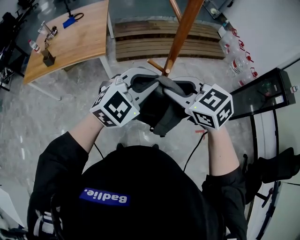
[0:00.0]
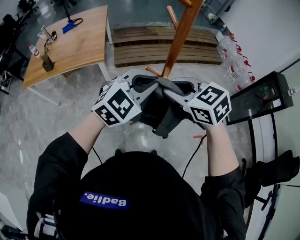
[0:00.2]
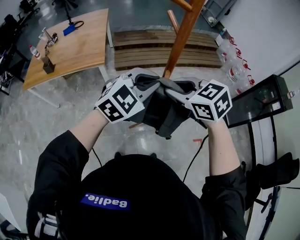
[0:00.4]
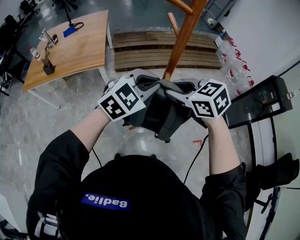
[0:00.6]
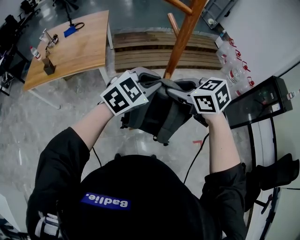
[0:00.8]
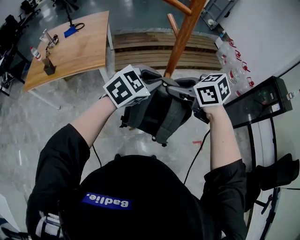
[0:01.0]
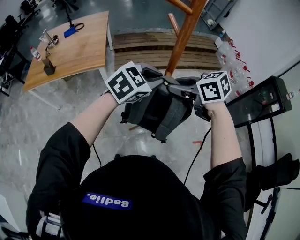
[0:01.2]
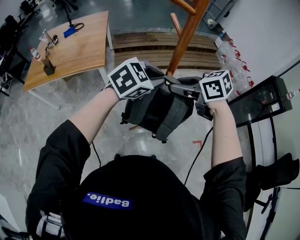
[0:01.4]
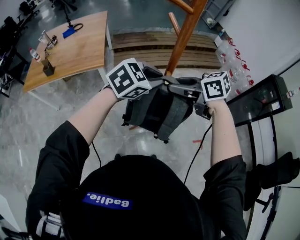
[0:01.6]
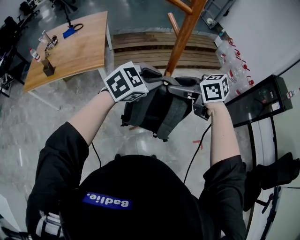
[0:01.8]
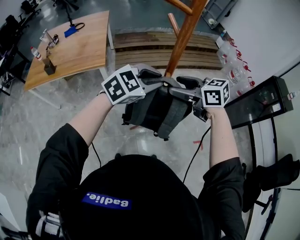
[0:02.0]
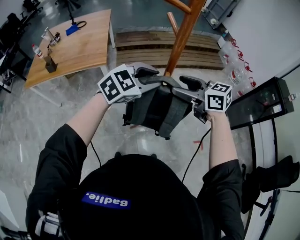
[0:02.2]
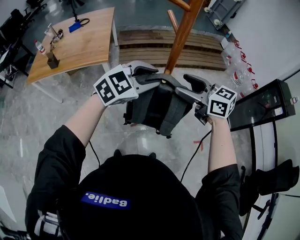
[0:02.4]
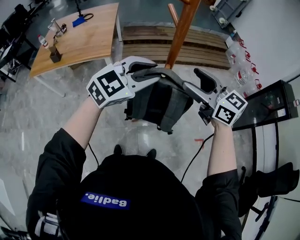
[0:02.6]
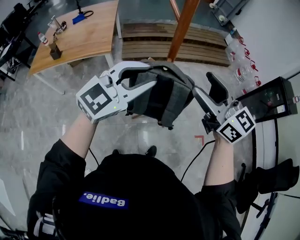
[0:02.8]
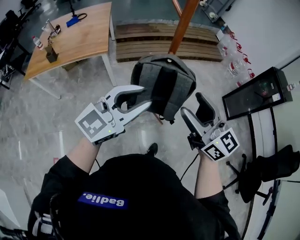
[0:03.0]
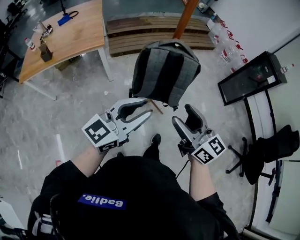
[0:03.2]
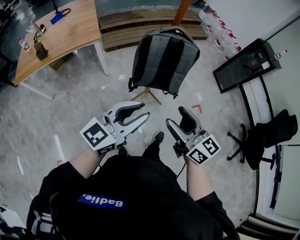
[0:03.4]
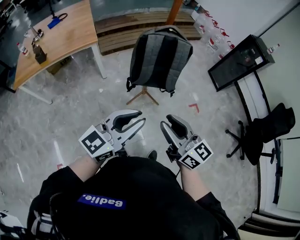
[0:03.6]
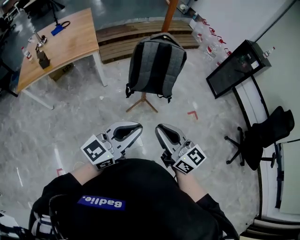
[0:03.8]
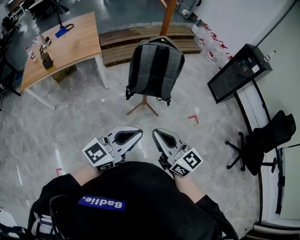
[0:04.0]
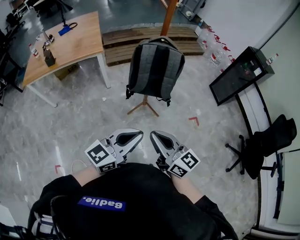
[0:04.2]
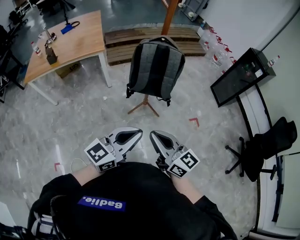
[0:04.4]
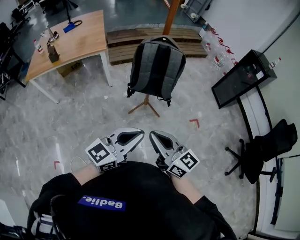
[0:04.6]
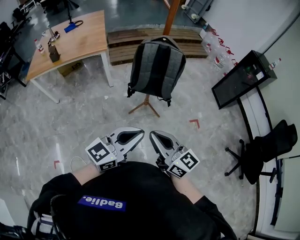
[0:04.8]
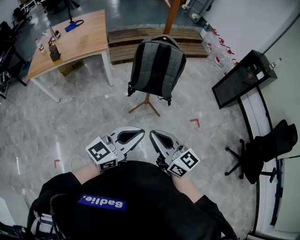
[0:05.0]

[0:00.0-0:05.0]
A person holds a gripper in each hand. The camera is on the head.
0:00.0 to 0:01.6: The left gripper ends up roughly 10 cm from where it was, and rotates approximately 30 degrees, while the right gripper ends up roughly 10 cm from where it was, and turns by approximately 30 degrees.
0:01.6 to 0:03.4: The left gripper travels upward and back again, roughly 5 cm each way, and tips its fingers upward by about 40 degrees; the right gripper moves about 10 cm upward and comes back, rotates roughly 50 degrees, and opens.
0:03.4 to 0:05.0: The right gripper goes roughly 15 cm backward, and closes up. The left gripper heads backward and to the right, covering approximately 15 cm, and closes its fingers.

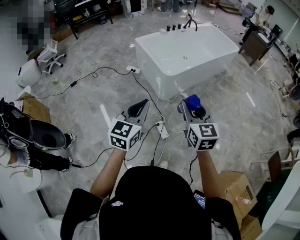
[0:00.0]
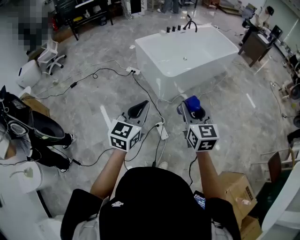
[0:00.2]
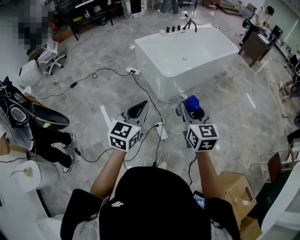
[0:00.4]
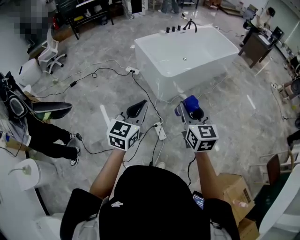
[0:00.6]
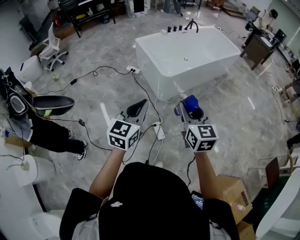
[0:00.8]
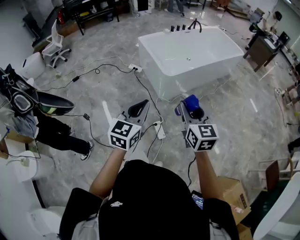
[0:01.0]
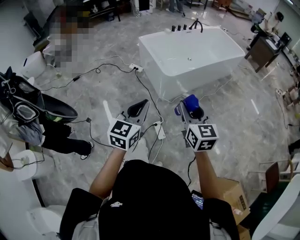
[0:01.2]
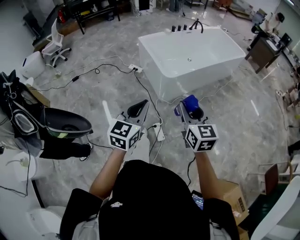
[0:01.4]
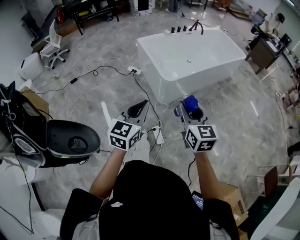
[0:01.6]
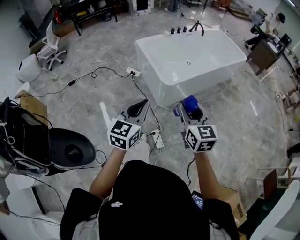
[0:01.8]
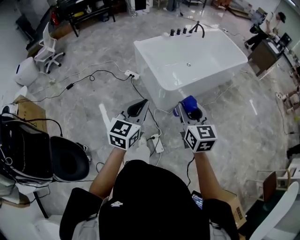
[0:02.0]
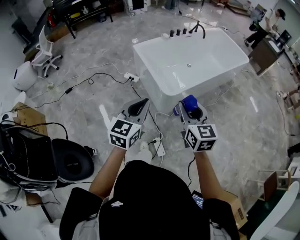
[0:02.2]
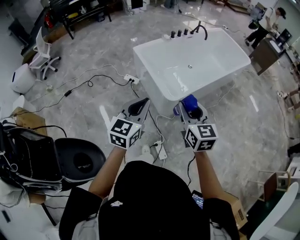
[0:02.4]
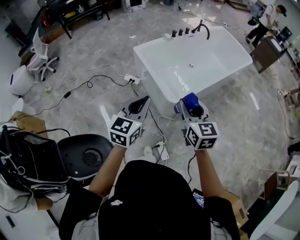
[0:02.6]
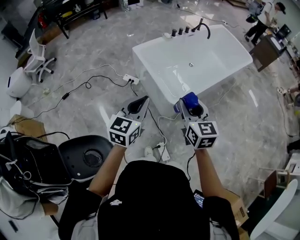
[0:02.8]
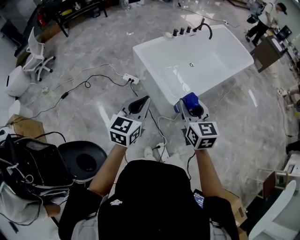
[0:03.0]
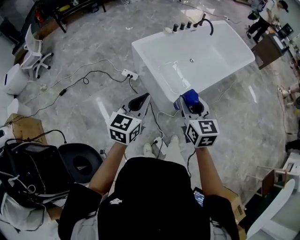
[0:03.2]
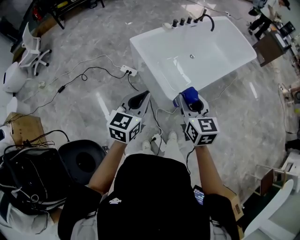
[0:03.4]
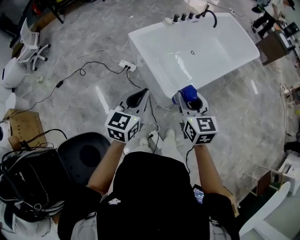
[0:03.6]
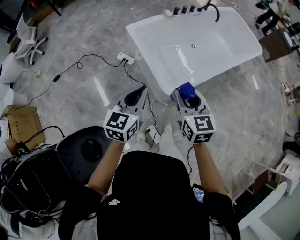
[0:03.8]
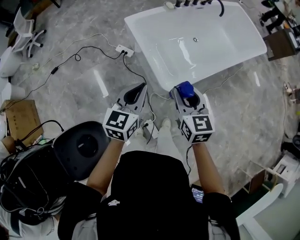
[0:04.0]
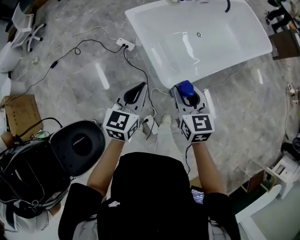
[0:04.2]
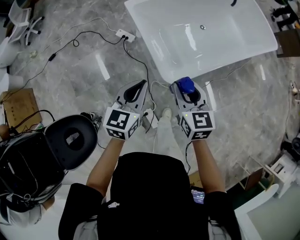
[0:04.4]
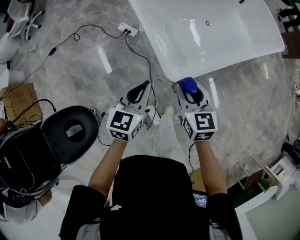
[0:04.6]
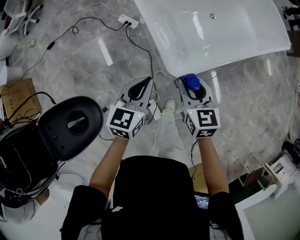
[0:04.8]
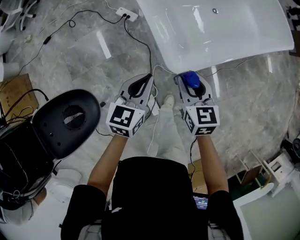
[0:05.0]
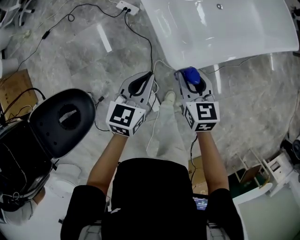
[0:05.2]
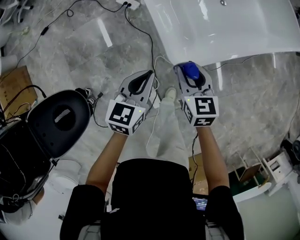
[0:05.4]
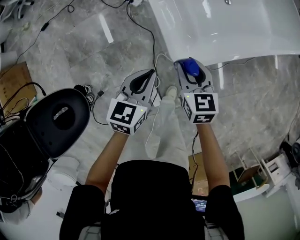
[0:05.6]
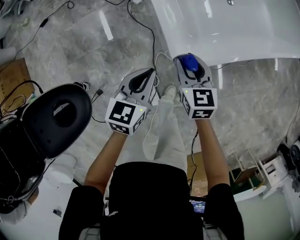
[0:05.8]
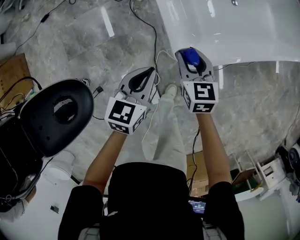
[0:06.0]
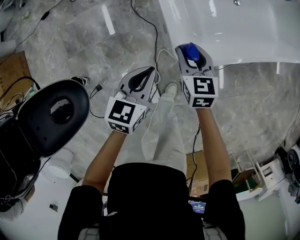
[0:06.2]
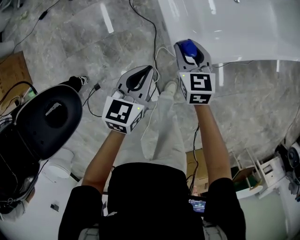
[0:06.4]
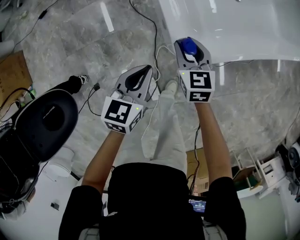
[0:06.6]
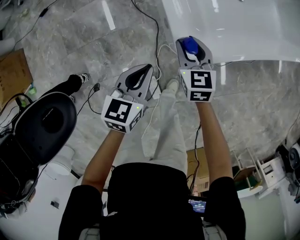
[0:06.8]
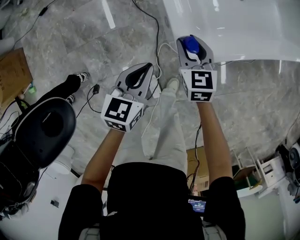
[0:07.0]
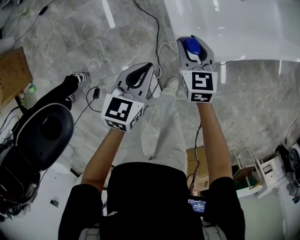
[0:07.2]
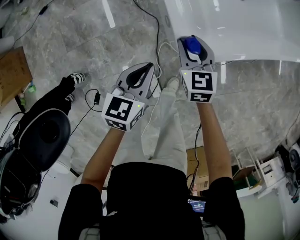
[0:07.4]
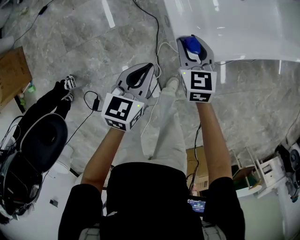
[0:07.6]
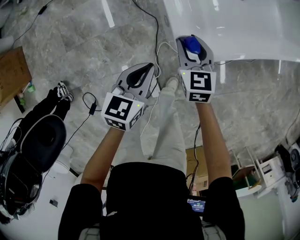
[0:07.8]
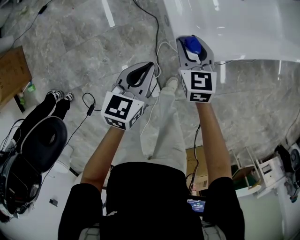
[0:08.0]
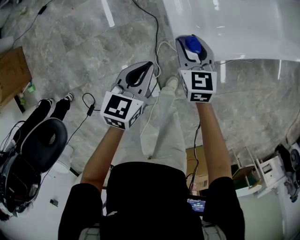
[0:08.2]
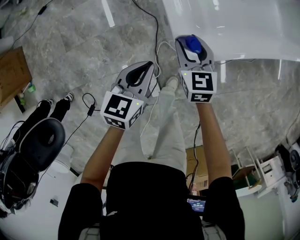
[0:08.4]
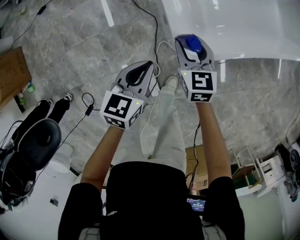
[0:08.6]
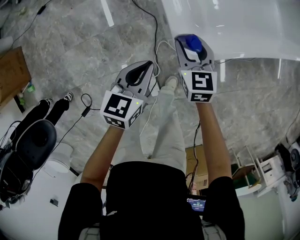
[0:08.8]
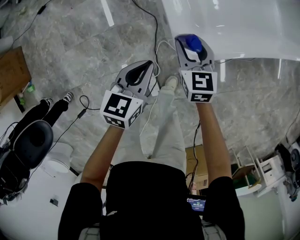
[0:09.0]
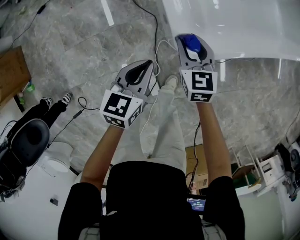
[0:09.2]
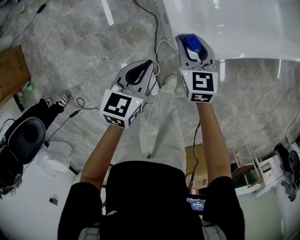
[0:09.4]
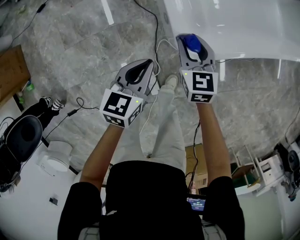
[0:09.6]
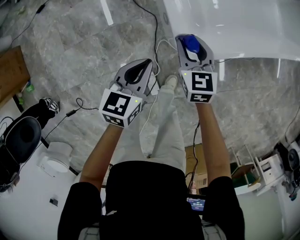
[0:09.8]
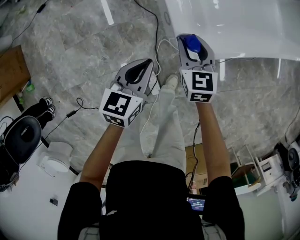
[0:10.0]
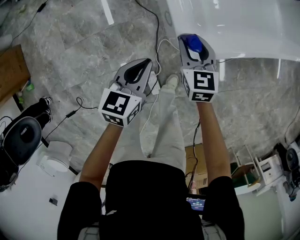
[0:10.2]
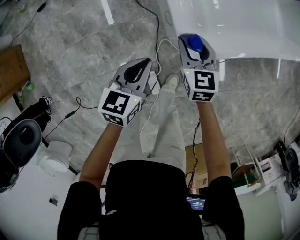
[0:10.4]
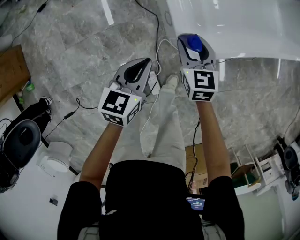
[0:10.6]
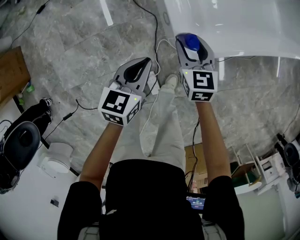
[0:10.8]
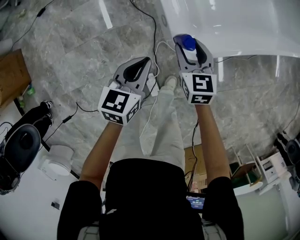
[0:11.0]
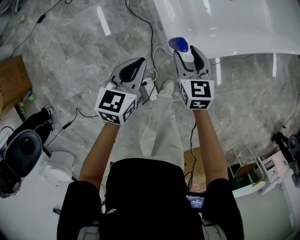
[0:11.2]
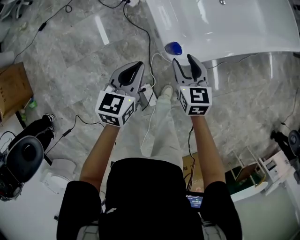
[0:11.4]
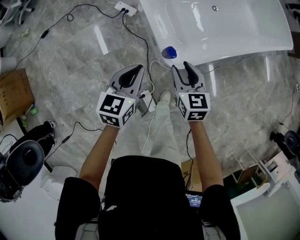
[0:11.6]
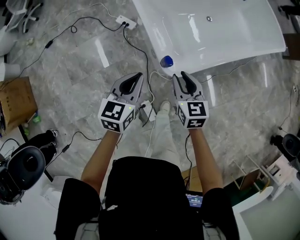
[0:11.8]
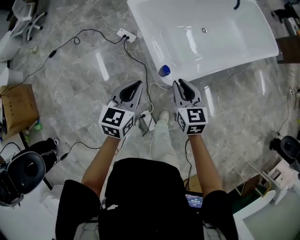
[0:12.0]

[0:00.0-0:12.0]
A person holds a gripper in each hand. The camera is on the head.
0:00.0 to 0:01.6: Both grippers travel together forward, approximately 10 cm.
0:01.6 to 0:03.0: The two grippers go approximately 35 cm forward.
0:03.0 to 0:04.4: The right gripper is displaced downward and forward by about 20 cm. Meanwhile the left gripper shifts roughly 20 cm downward, forward and to the right.
0:04.4 to 0:06.0: The right gripper moves downward and forward, approximately 25 cm. The left gripper is displaced downward by about 20 cm.
0:06.0 to 0:07.6: The grippers make only small movements.
0:07.6 to 0:09.0: The two grippers keep their place.
0:09.0 to 0:10.4: There are only small adjustments of the grippers.
0:10.4 to 0:12.0: Both grippers travel together upward, roughly 25 cm. The right gripper closes its fingers.

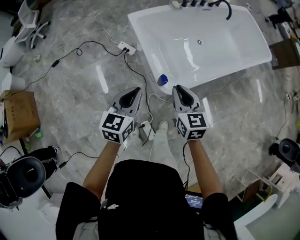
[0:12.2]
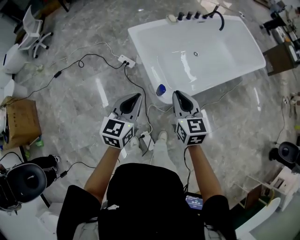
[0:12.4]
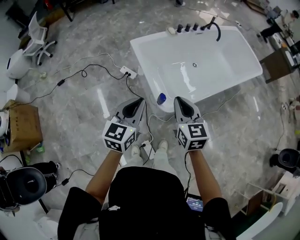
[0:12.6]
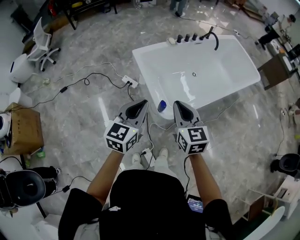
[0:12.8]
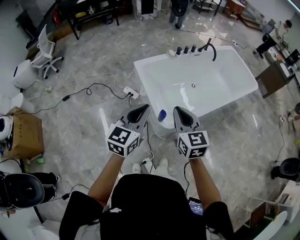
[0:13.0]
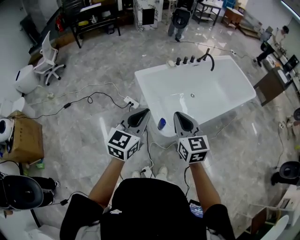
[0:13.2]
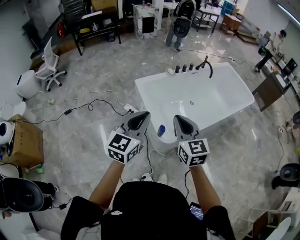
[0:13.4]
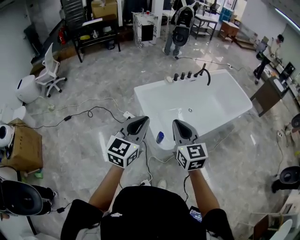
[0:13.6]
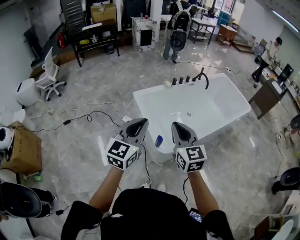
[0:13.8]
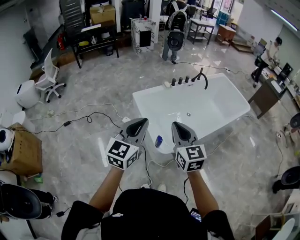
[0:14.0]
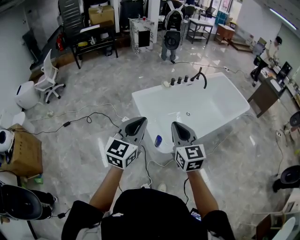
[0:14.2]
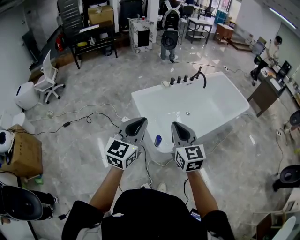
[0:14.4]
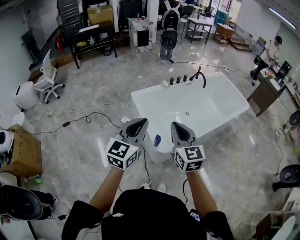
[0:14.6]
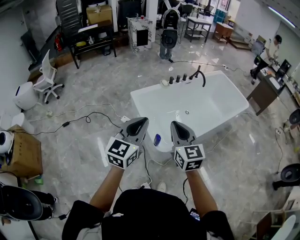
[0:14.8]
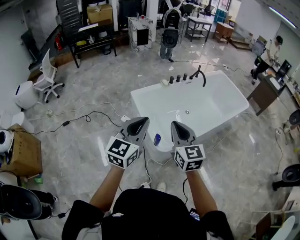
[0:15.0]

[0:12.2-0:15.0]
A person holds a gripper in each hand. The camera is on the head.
0:12.2 to 0:13.6: The two grippers go approximately 25 cm upward. The left gripper turns by roughly 20 degrees.
0:13.6 to 0:15.0: The grippers stay close to where they were, moving slightly.

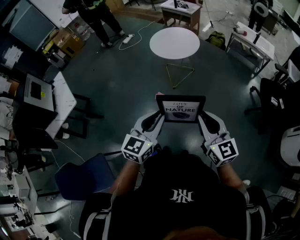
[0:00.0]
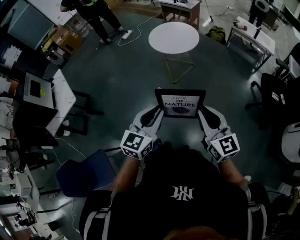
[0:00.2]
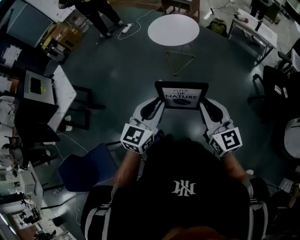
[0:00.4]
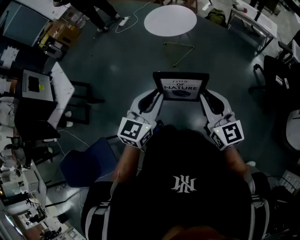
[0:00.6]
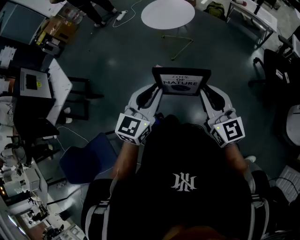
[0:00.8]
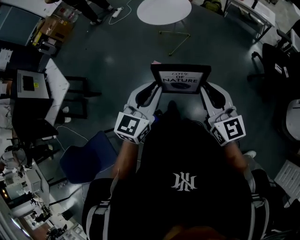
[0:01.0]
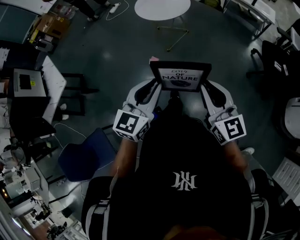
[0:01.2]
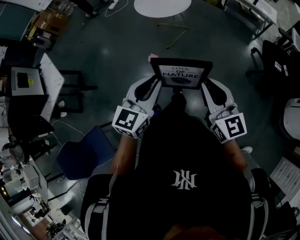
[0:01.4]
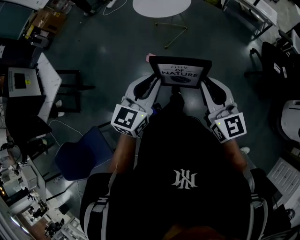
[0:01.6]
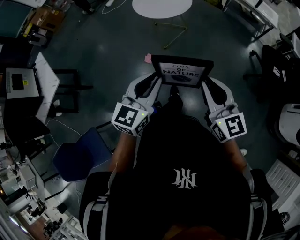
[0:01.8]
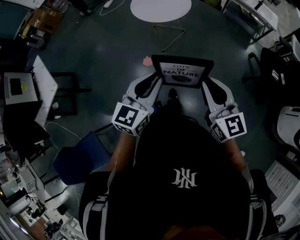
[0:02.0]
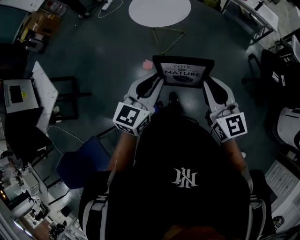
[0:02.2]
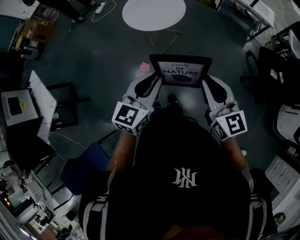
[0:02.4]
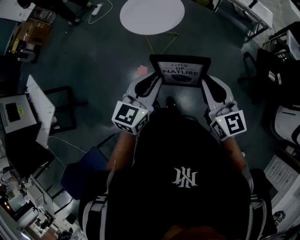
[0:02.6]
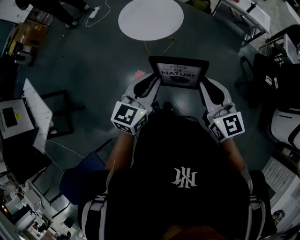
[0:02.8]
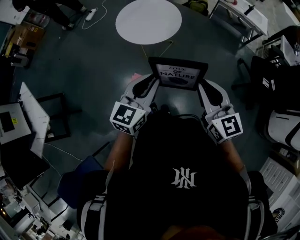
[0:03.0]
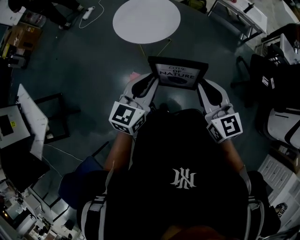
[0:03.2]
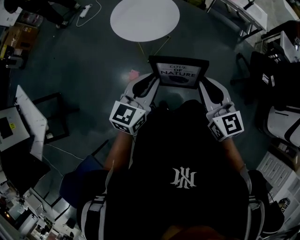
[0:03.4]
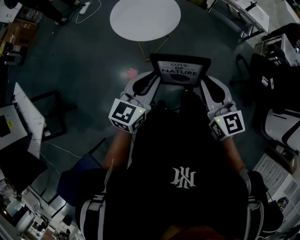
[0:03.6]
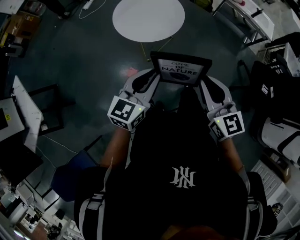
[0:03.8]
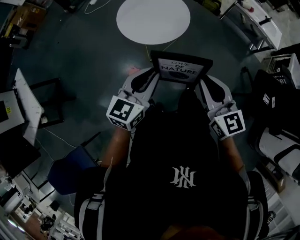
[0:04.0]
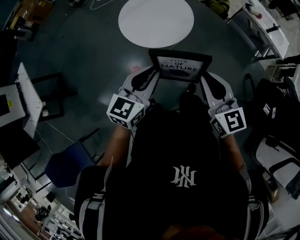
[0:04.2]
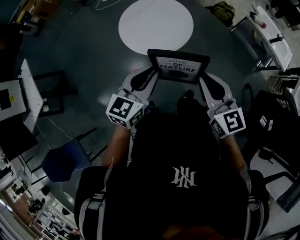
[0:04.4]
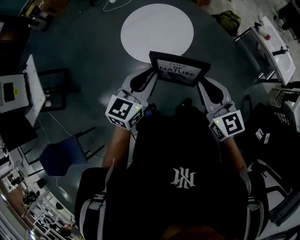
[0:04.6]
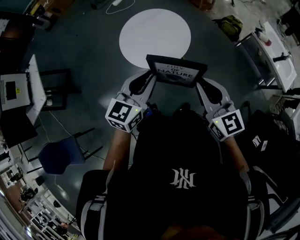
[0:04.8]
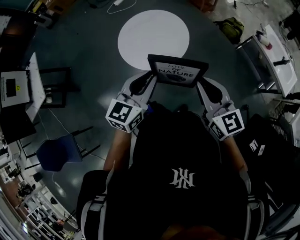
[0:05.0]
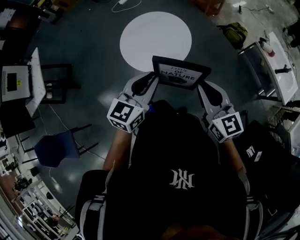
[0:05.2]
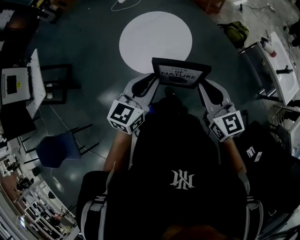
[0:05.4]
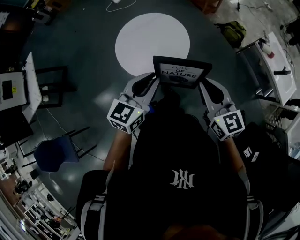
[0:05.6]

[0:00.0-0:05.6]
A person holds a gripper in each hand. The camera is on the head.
0:00.0 to 0:01.4: The grippers both shift to the right by approximately 5 cm.
0:01.4 to 0:02.8: The grippers both shift forward by some 25 cm.
0:02.8 to 0:04.2: Both grippers travel together forward, approximately 20 cm.
0:04.2 to 0:05.6: The grippers both shift forward and to the right by approximately 25 cm.
